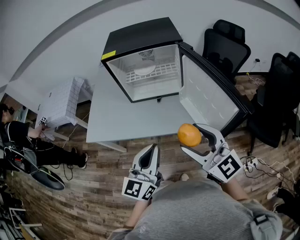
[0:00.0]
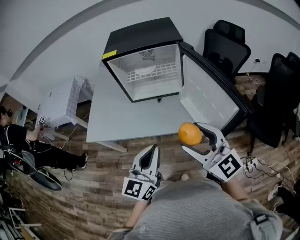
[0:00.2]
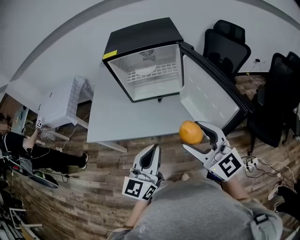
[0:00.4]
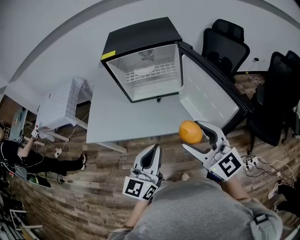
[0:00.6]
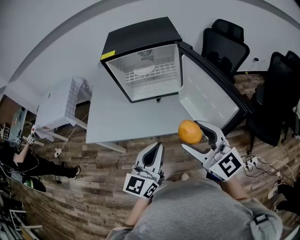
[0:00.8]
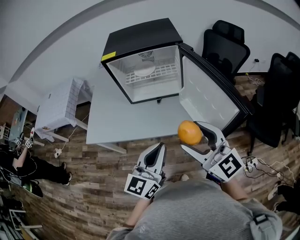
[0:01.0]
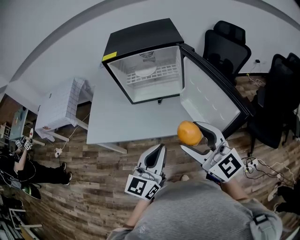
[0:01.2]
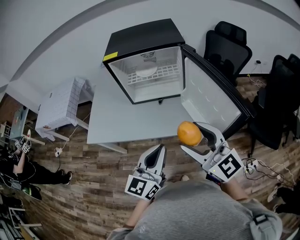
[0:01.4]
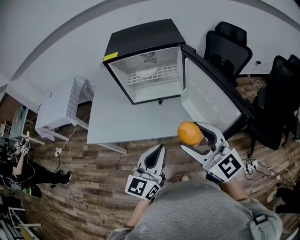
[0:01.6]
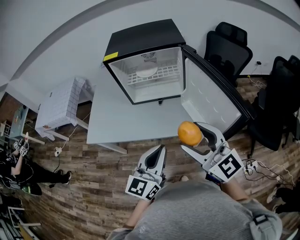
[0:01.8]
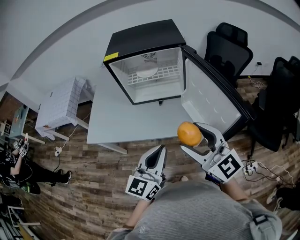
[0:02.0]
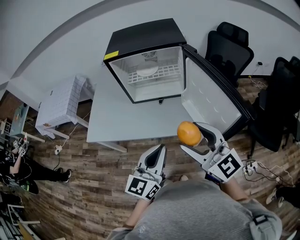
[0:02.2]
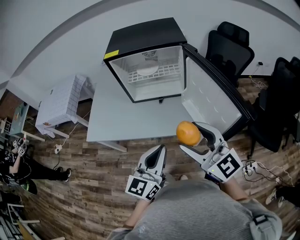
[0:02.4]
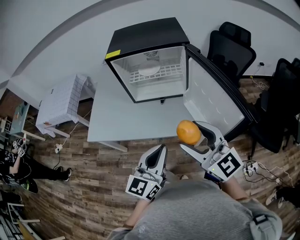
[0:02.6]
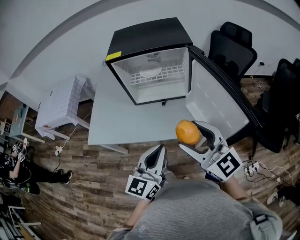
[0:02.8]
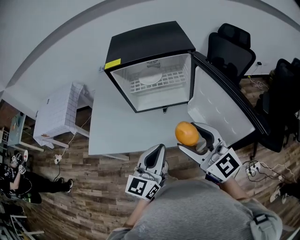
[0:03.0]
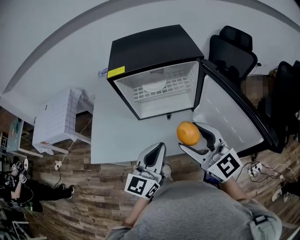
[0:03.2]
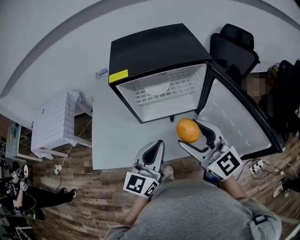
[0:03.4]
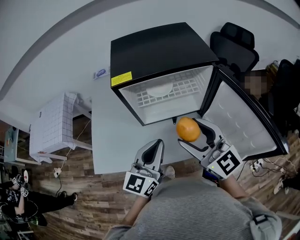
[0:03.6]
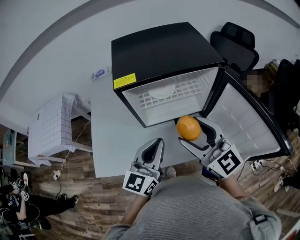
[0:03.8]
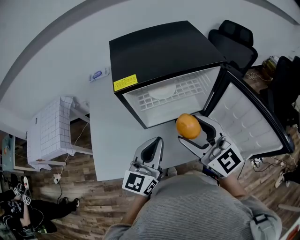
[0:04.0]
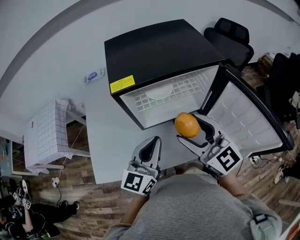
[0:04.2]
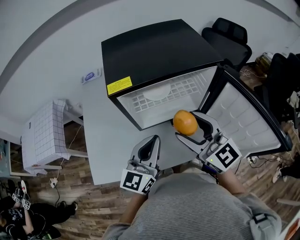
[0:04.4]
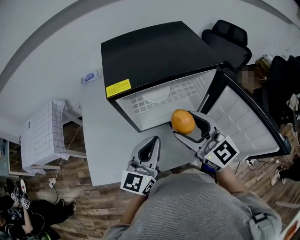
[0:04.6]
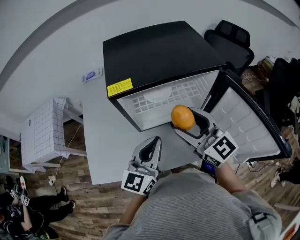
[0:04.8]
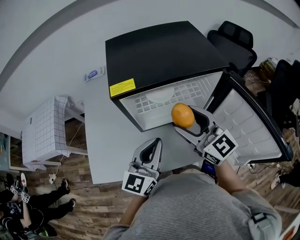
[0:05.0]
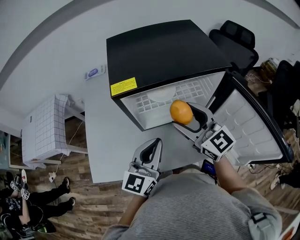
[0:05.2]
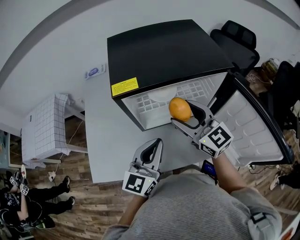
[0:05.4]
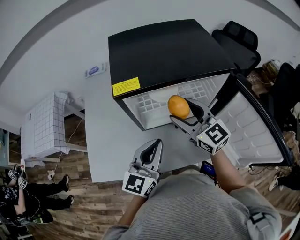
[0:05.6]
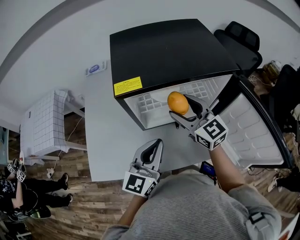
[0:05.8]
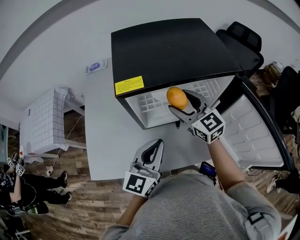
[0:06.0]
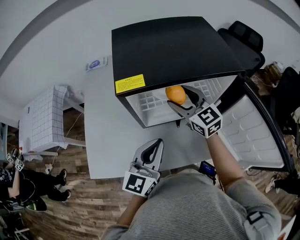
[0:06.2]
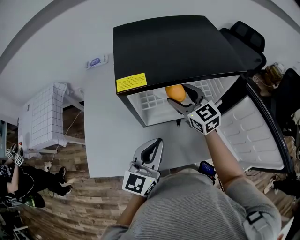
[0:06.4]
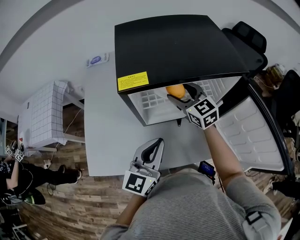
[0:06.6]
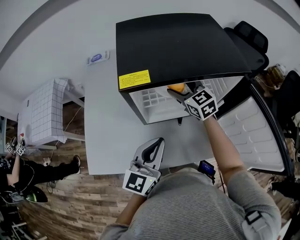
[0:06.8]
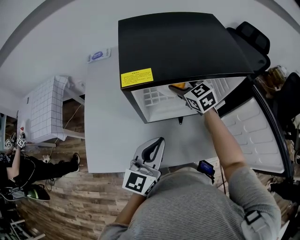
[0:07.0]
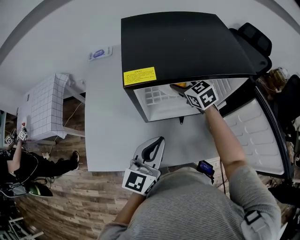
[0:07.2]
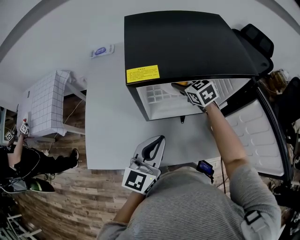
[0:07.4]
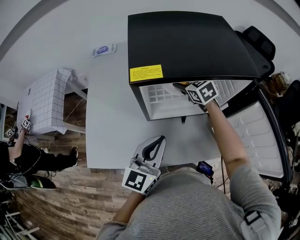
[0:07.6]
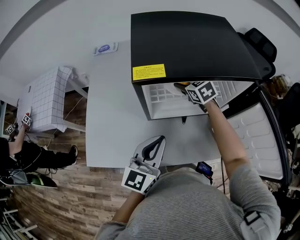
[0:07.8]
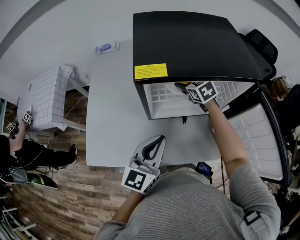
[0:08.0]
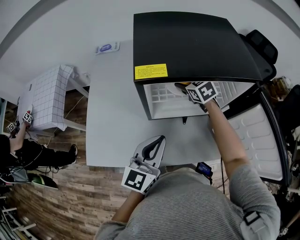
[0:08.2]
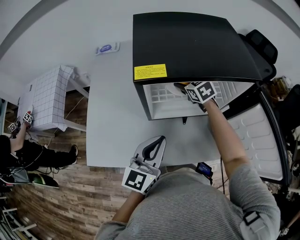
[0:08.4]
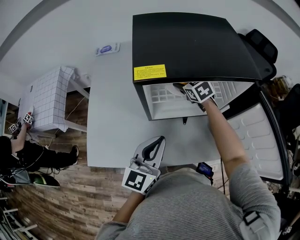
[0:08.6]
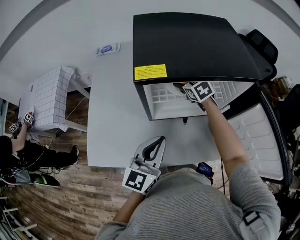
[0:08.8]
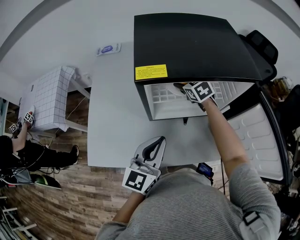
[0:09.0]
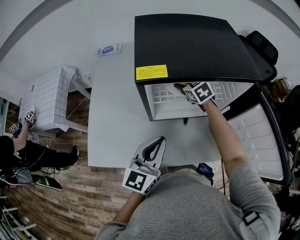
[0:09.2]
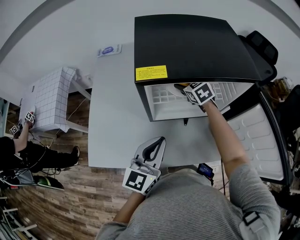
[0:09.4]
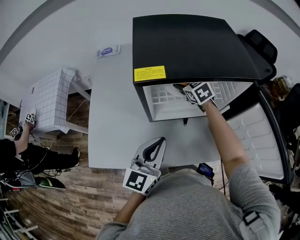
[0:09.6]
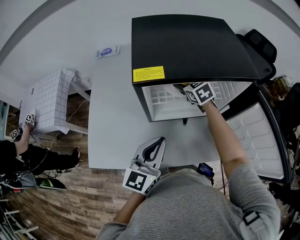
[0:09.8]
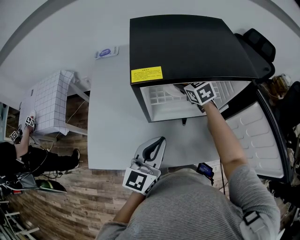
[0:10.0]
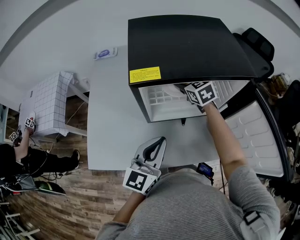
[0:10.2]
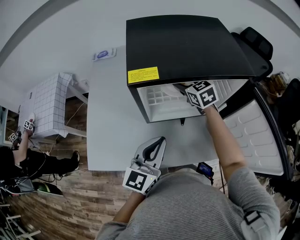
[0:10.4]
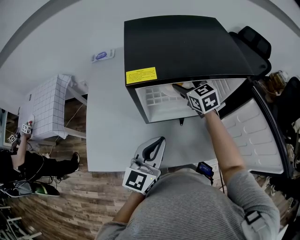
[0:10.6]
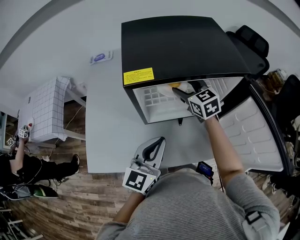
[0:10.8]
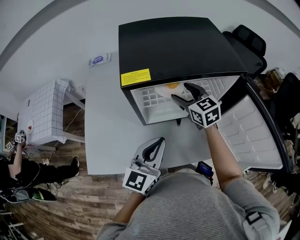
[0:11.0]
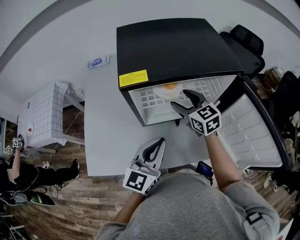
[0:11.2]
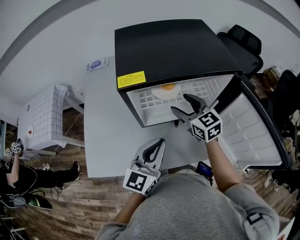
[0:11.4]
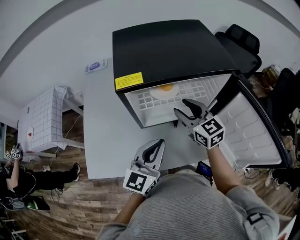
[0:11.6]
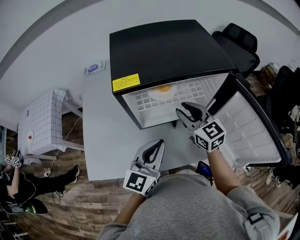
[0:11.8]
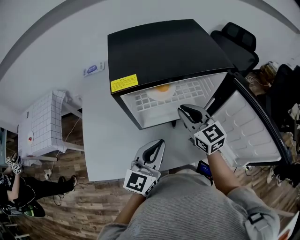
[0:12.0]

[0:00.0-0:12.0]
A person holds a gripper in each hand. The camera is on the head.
0:00.0 to 0:01.6: The grippers make only small movements.
0:01.6 to 0:03.0: Both grippers travel together forward, roughly 10 cm.
0:03.0 to 0:04.4: The grippers both shift forward and to the left by roughly 20 cm.
0:04.4 to 0:06.0: The right gripper travels forward and downward by approximately 15 cm.
0:06.0 to 0:07.6: The right gripper is displaced forward and downward by about 15 cm, and swivels approximately 30 degrees.
0:07.6 to 0:09.0: The grippers make only small movements.
0:09.0 to 0:10.4: The right gripper ends up about 5 cm from where it was.
0:10.4 to 0:12.0: The right gripper is displaced backward by approximately 15 cm, swivels about 20 degrees, and closes.

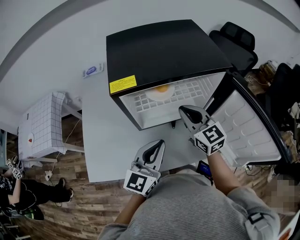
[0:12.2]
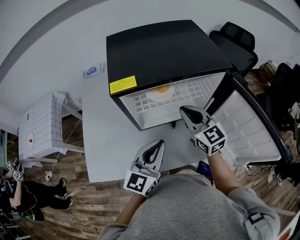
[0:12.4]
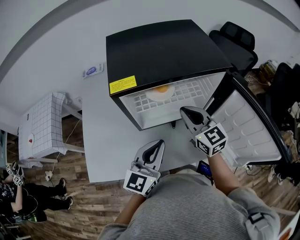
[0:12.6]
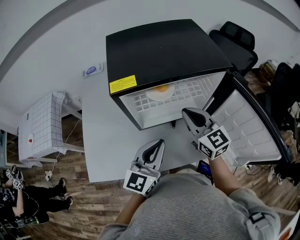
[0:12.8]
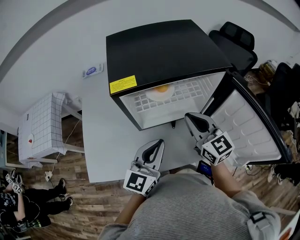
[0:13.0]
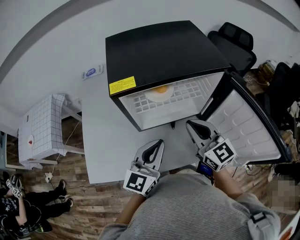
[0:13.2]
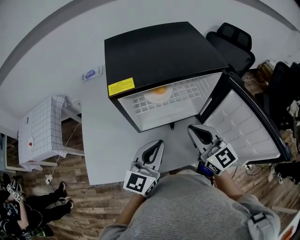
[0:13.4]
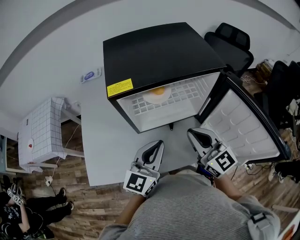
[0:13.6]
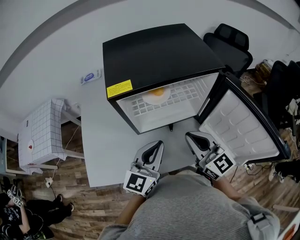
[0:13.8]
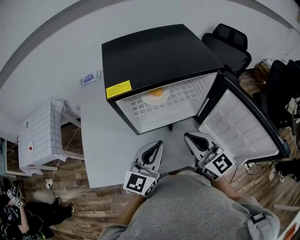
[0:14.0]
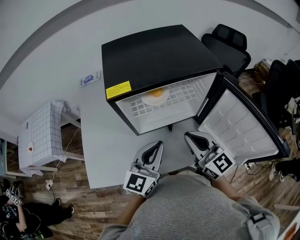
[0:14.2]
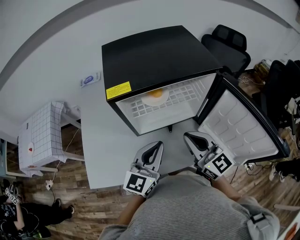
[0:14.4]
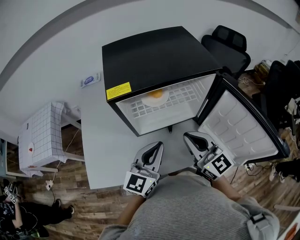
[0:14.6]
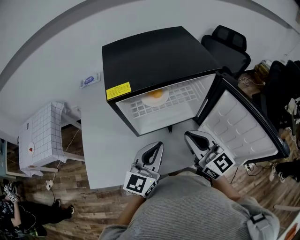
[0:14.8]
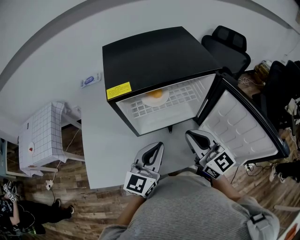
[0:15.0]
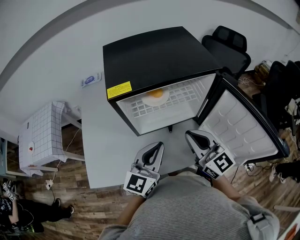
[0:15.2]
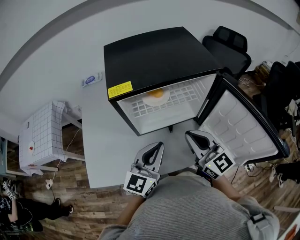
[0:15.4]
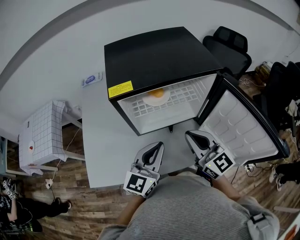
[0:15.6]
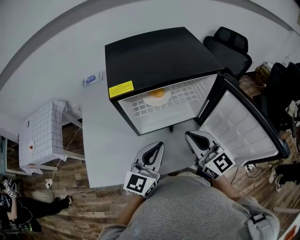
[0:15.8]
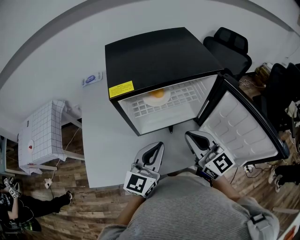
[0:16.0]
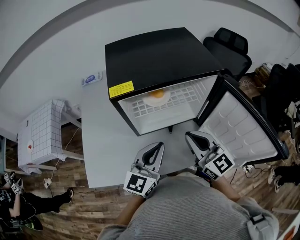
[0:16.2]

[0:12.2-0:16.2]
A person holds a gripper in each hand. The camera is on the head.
0:12.2 to 0:13.6: The right gripper travels backward by approximately 10 cm.
0:13.6 to 0:14.8: The two grippers keep their place.
0:14.8 to 0:16.2: Both grippers stay about where they are.

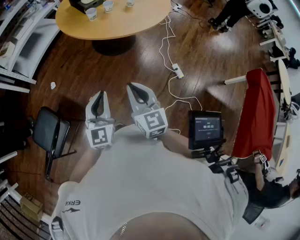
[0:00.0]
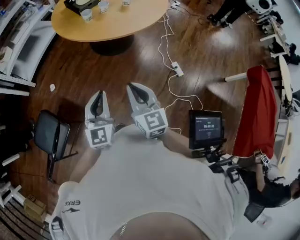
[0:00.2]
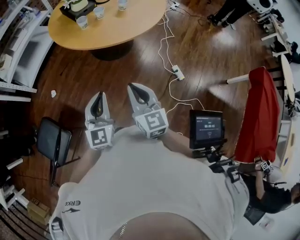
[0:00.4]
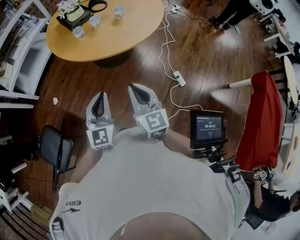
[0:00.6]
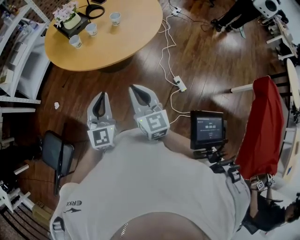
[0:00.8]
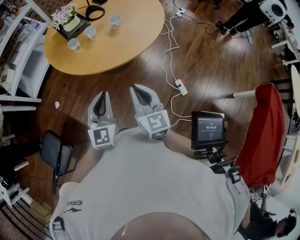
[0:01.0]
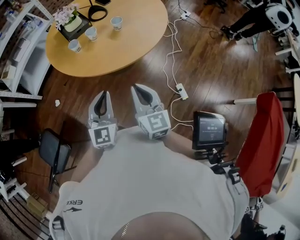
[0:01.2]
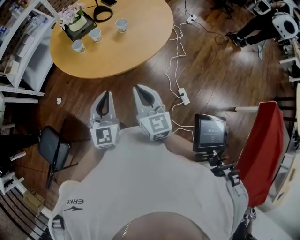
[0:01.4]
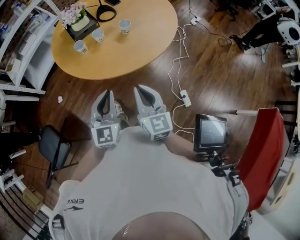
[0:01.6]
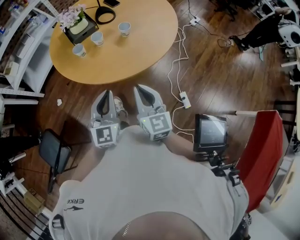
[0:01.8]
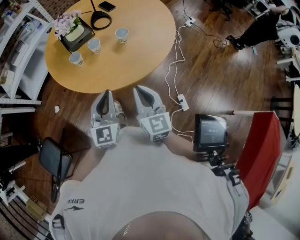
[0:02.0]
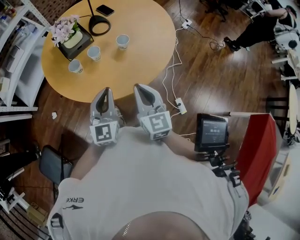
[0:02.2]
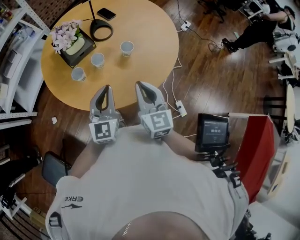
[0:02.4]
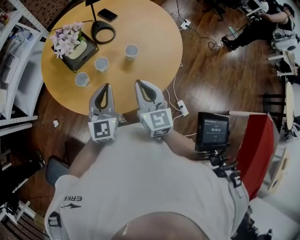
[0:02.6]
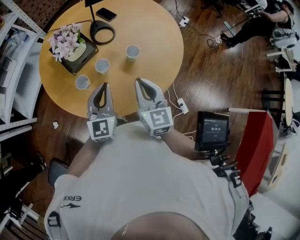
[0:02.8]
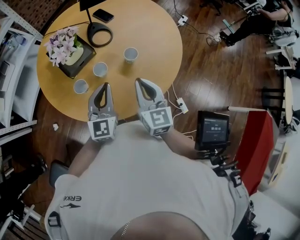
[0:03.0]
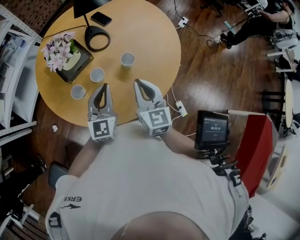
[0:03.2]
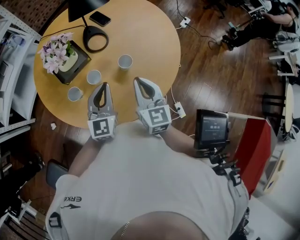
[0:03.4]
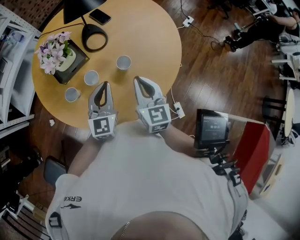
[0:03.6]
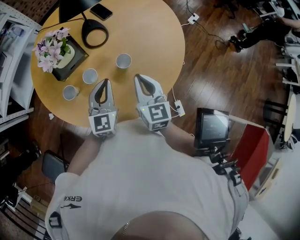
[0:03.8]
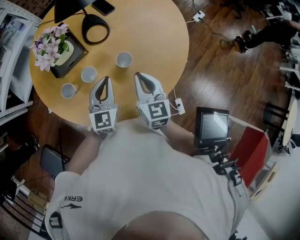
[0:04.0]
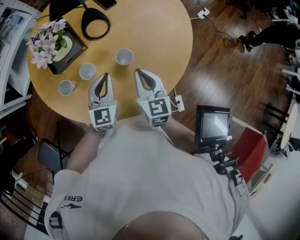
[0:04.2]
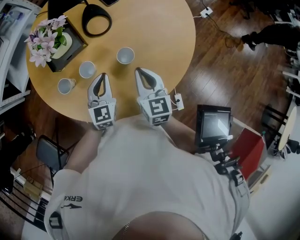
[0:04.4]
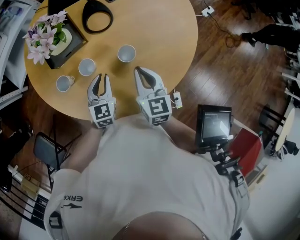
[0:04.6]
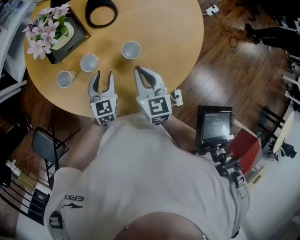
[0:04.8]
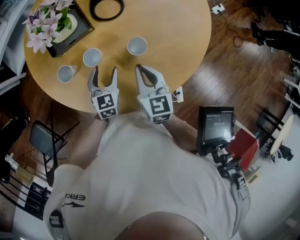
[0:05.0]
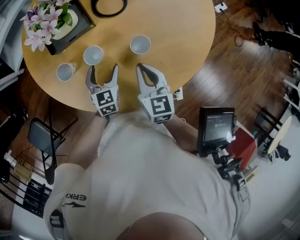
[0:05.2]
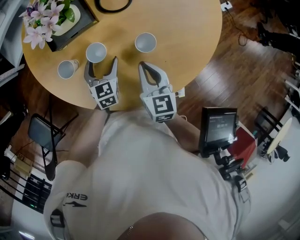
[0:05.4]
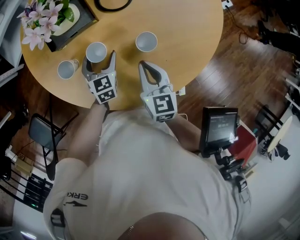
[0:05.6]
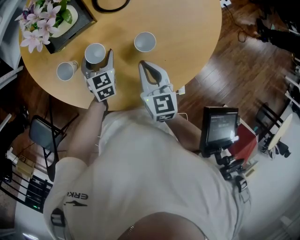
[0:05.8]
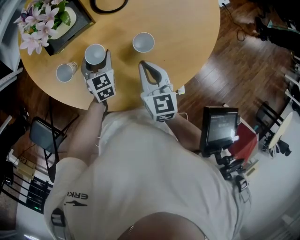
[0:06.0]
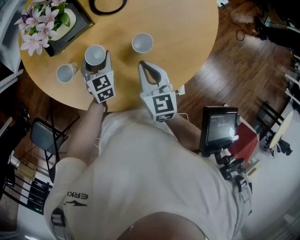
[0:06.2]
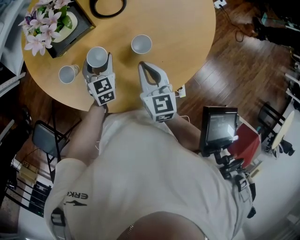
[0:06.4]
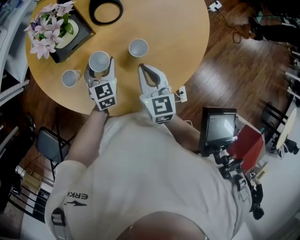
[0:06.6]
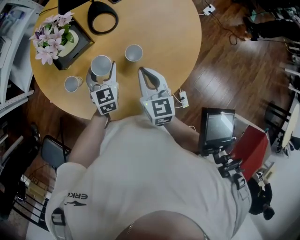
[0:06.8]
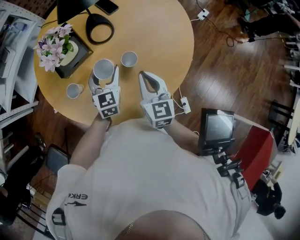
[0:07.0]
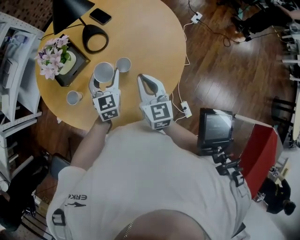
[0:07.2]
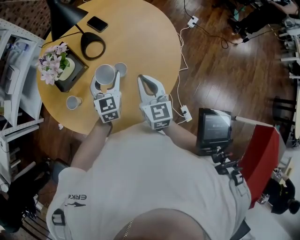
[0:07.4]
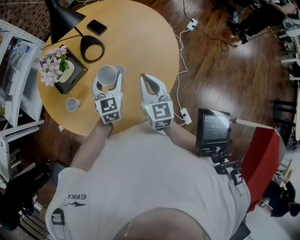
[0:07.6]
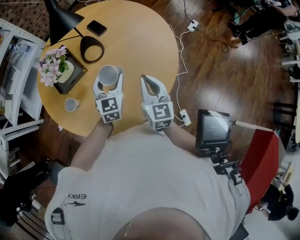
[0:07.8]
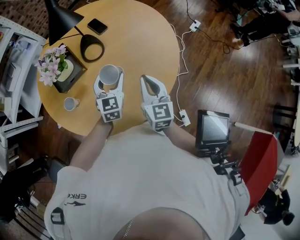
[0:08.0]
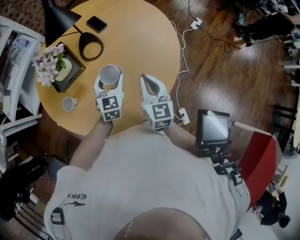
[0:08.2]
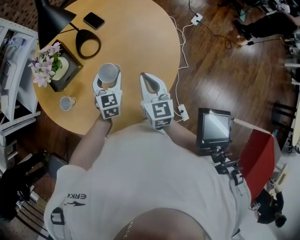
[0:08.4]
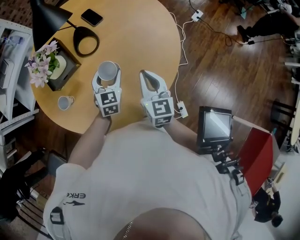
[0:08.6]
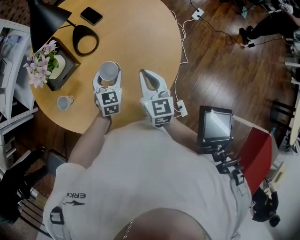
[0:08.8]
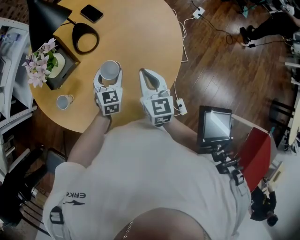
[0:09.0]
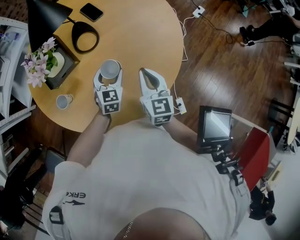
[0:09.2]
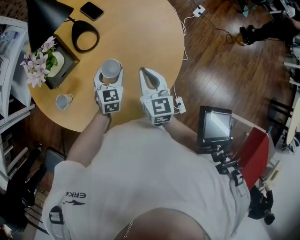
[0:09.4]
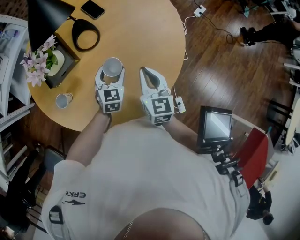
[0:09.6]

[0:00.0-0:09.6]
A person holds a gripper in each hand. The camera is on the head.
0:00.0 to 0:01.6: The two grippers go some 30 cm forward and to the right.
0:01.6 to 0:03.2: Both grippers move forward, approximately 30 cm.
0:03.2 to 0:04.8: The right gripper heads downward and forward, covering approximately 15 cm, and rotates roughly 20 degrees, while the left gripper moves downward, about 15 cm, swivels approximately 30 degrees, and opens.
0:04.8 to 0:06.4: The left gripper moves forward, about 5 cm, and opens.
0:06.4 to 0:08.0: The left gripper goes approximately 25 cm upward and to the right, and changes its angle by approximately 20 degrees. The right gripper heads to the right and upward, covering about 15 cm, and swivels some 20 degrees.
0:08.0 to 0:09.6: The right gripper is displaced downward by approximately 5 cm; the left gripper travels downward by approximately 10 cm.
